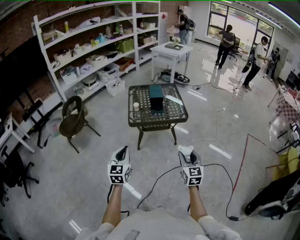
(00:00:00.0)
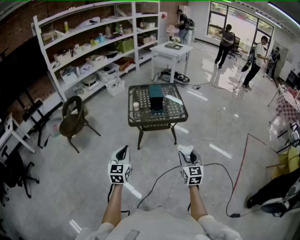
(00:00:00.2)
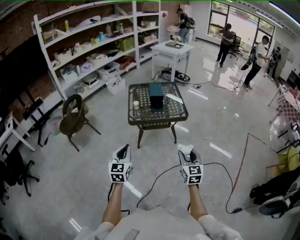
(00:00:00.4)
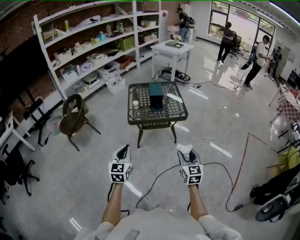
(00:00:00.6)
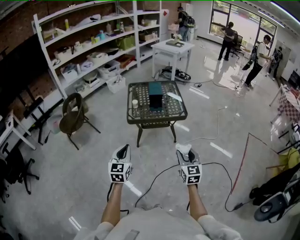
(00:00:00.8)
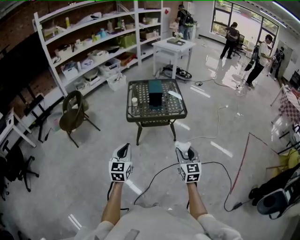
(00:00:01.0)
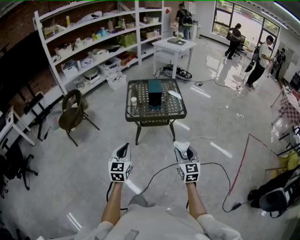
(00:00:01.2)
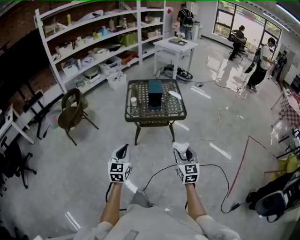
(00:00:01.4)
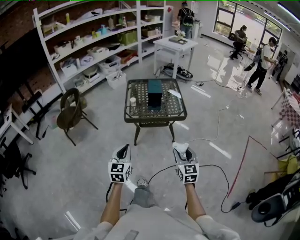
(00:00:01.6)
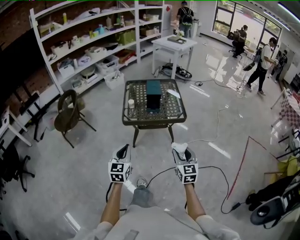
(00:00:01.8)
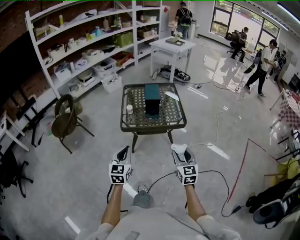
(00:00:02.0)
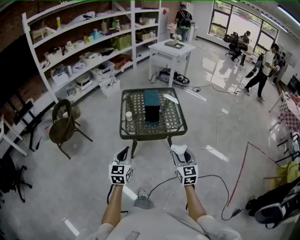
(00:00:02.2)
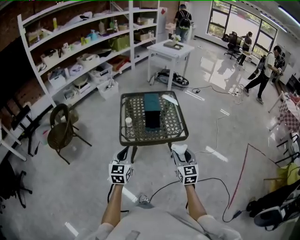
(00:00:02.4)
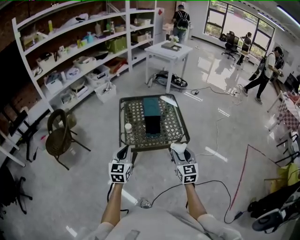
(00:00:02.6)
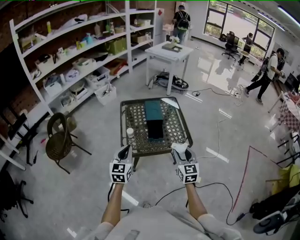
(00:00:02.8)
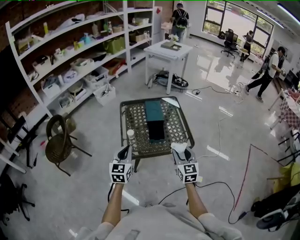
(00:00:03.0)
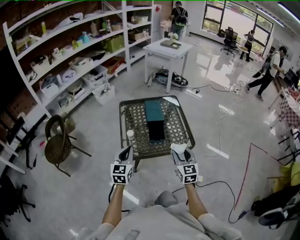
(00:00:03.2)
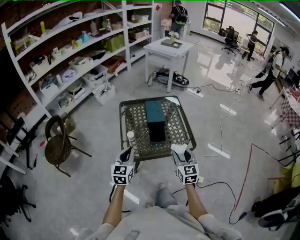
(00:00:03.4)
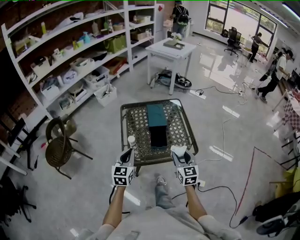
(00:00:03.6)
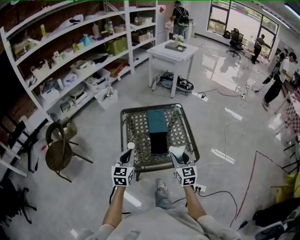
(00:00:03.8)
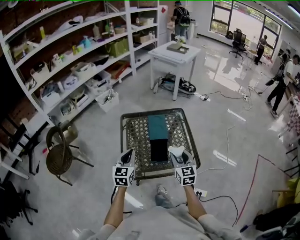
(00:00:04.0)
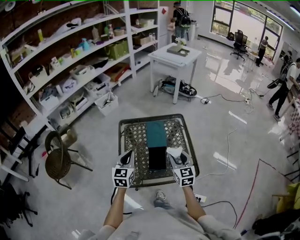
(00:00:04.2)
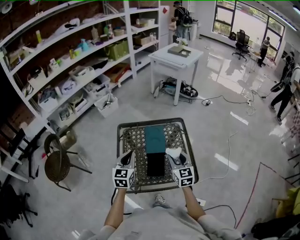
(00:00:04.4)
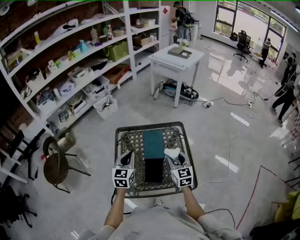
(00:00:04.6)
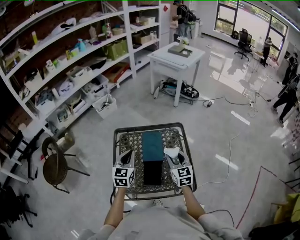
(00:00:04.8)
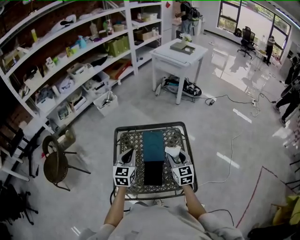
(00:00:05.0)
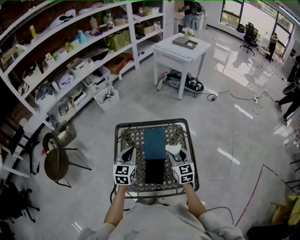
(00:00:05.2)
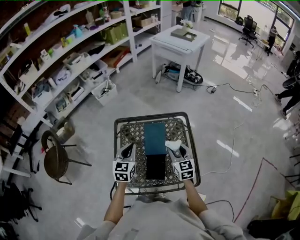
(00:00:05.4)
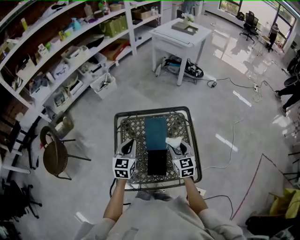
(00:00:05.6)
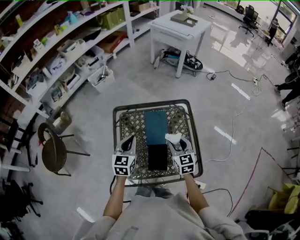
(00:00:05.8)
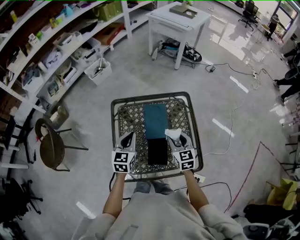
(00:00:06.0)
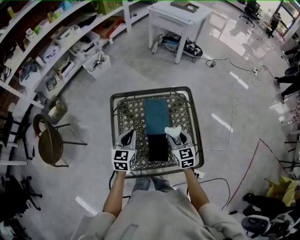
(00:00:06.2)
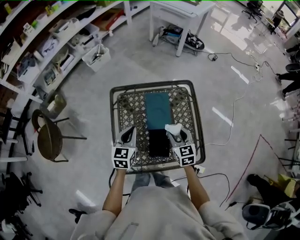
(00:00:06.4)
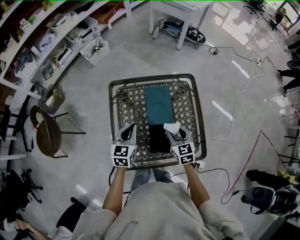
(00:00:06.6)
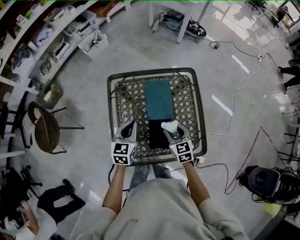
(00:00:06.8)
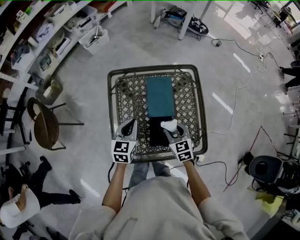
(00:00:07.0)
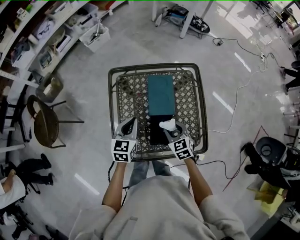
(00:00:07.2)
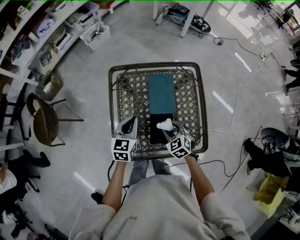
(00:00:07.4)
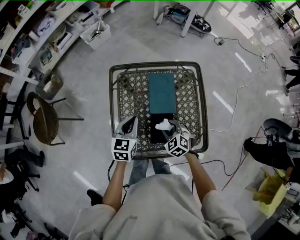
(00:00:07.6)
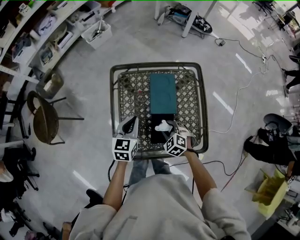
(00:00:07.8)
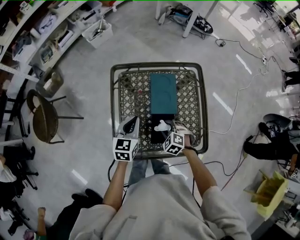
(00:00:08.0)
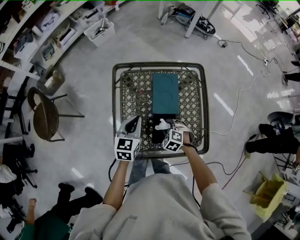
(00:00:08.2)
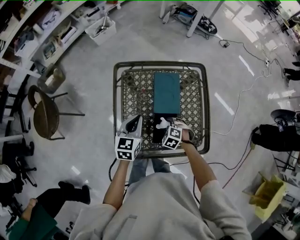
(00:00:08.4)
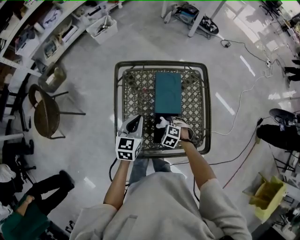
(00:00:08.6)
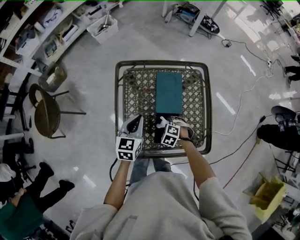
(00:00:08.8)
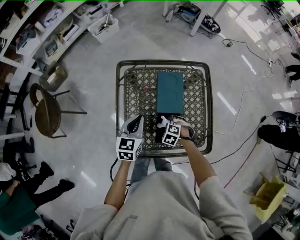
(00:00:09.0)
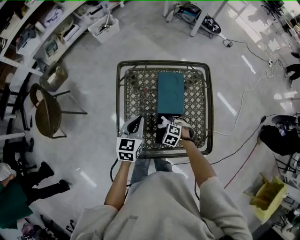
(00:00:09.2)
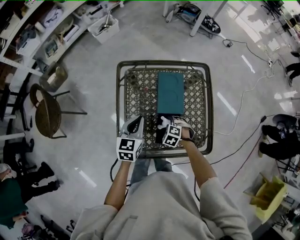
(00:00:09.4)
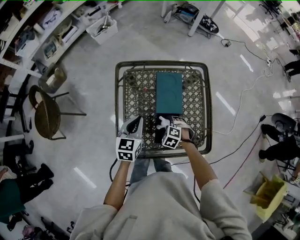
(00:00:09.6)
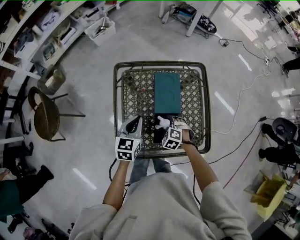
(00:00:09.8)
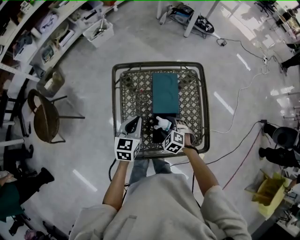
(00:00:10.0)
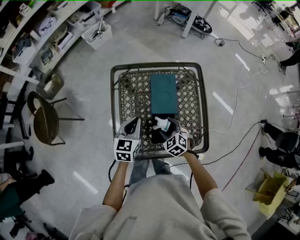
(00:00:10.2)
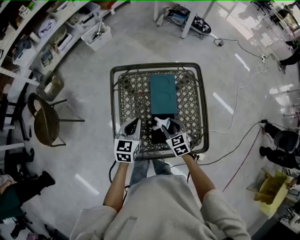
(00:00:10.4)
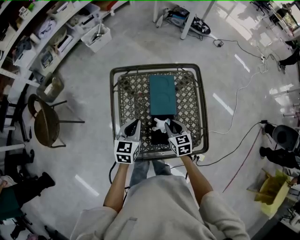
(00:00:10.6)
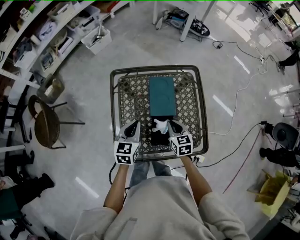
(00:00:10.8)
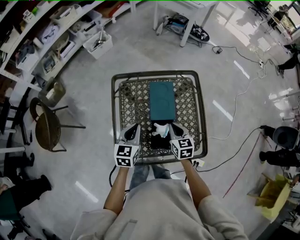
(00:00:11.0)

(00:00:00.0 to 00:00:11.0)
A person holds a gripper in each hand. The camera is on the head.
00:00:00.0 - 00:00:01.6: The right gripper is displaced forward by about 5 cm; the left gripper moves to the right, approximately 5 cm.
00:00:01.6 - 00:00:03.2: The two grippers go approximately 35 cm forward.
00:00:03.2 - 00:00:04.8: The grippers both shift forward by some 35 cm.
00:00:04.8 - 00:00:06.2: Both grippers move downward, roughly 10 cm.
00:00:06.2 - 00:00:07.8: The left gripper goes approximately 5 cm downward. The right gripper heads downward, to the left and backward, covering some 20 cm, and tips its fingers downward by roughly 30 degrees.
00:00:07.8 - 00:00:09.4: The right gripper goes roughly 10 cm downward.
00:00:09.4 - 00:00:11.0: The right gripper travels upward by some 15 cm, tips its fingers upward by about 40 degrees, and closes.

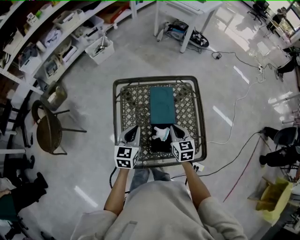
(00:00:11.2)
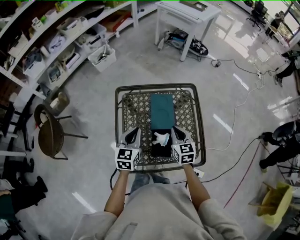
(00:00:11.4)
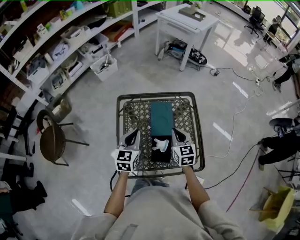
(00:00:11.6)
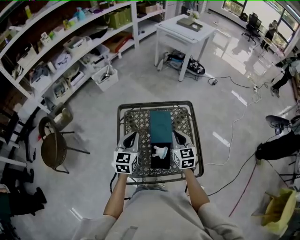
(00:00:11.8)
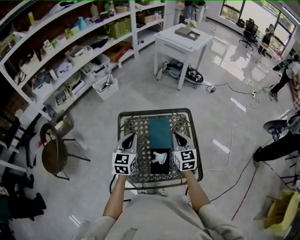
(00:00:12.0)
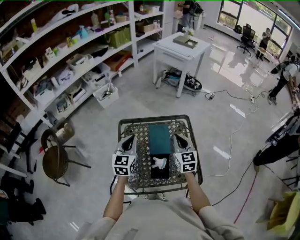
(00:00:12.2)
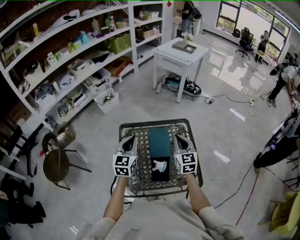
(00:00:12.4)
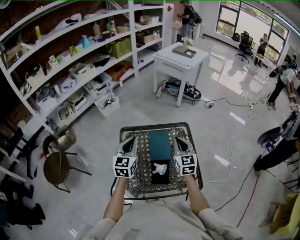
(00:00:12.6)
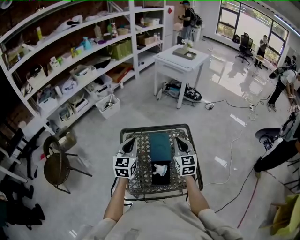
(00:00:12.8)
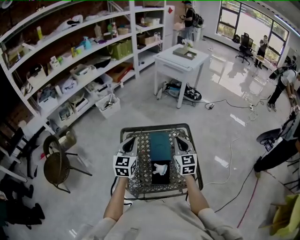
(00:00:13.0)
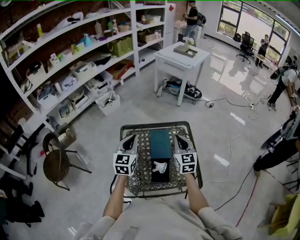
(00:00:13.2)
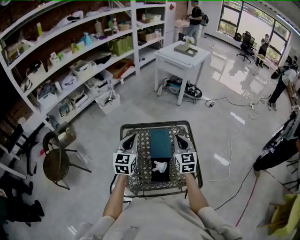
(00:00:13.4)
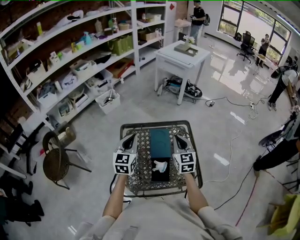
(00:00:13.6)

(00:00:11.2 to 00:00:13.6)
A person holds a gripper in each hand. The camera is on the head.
00:00:11.2 - 00:00:12.4: Both grippers travel together upward, approximately 20 cm. The right gripper changes its angle by some 20 degrees.
00:00:12.4 - 00:00:13.6: The grippers make only small movements.

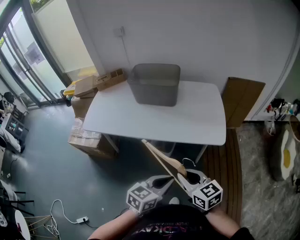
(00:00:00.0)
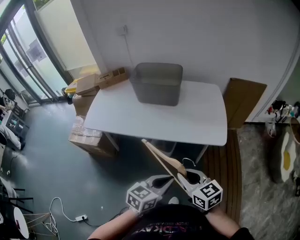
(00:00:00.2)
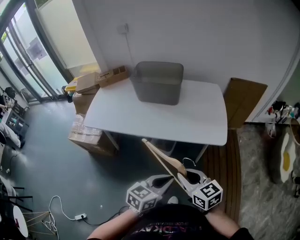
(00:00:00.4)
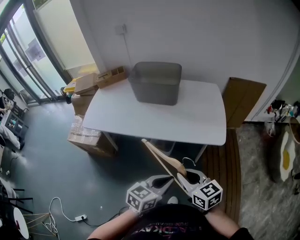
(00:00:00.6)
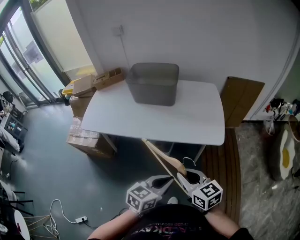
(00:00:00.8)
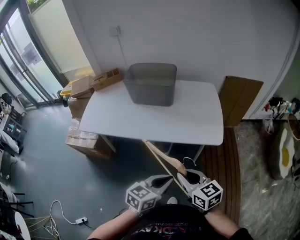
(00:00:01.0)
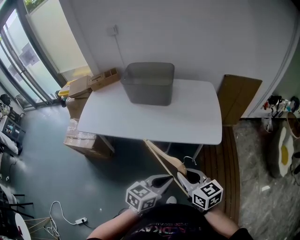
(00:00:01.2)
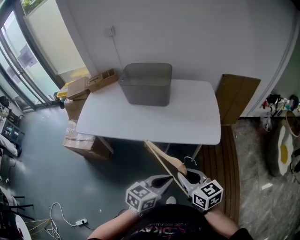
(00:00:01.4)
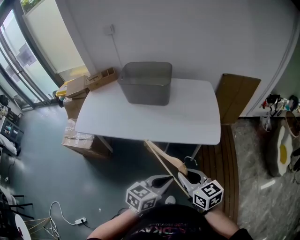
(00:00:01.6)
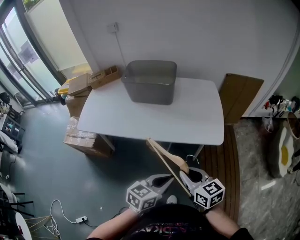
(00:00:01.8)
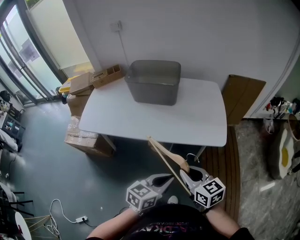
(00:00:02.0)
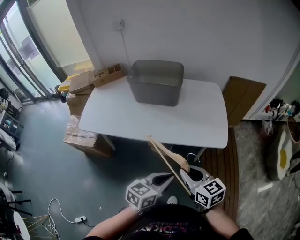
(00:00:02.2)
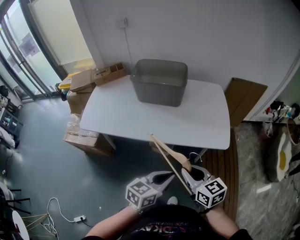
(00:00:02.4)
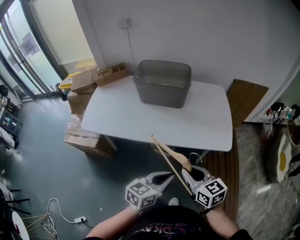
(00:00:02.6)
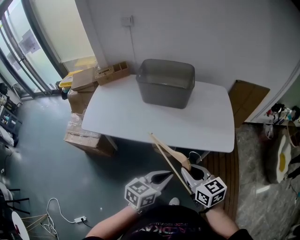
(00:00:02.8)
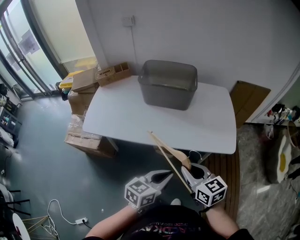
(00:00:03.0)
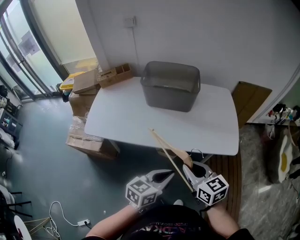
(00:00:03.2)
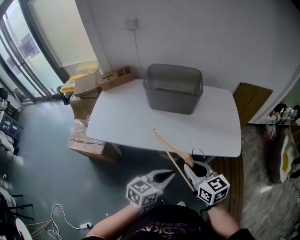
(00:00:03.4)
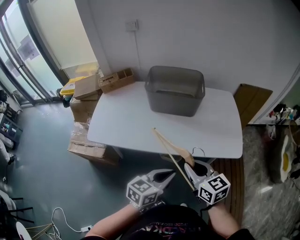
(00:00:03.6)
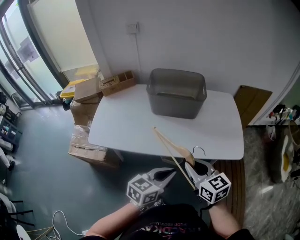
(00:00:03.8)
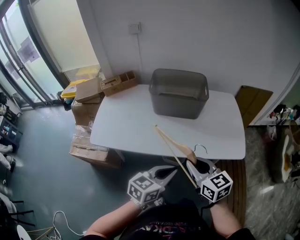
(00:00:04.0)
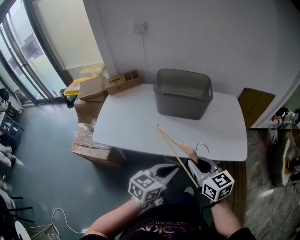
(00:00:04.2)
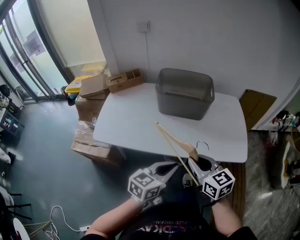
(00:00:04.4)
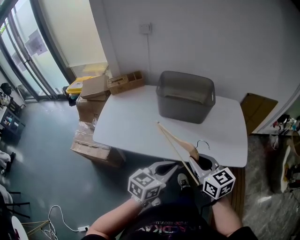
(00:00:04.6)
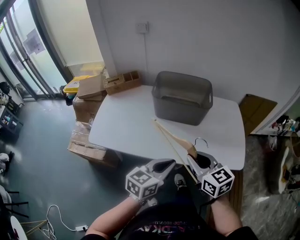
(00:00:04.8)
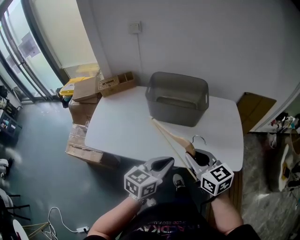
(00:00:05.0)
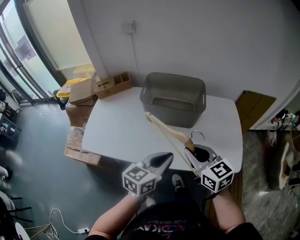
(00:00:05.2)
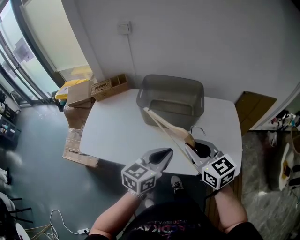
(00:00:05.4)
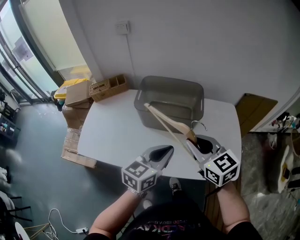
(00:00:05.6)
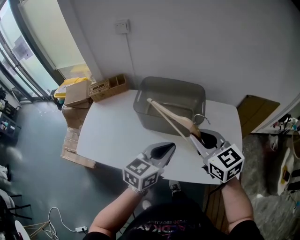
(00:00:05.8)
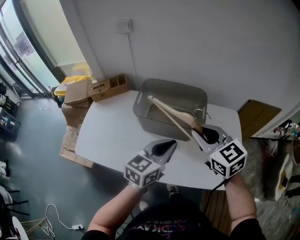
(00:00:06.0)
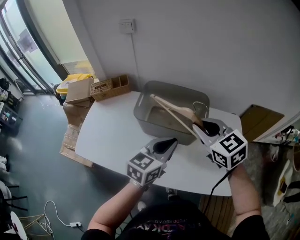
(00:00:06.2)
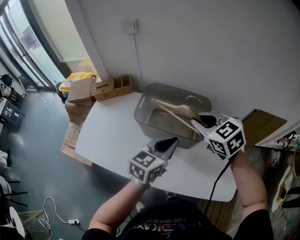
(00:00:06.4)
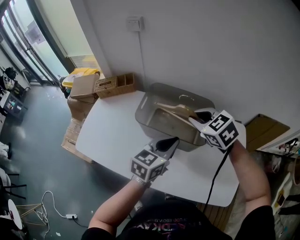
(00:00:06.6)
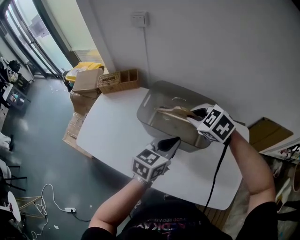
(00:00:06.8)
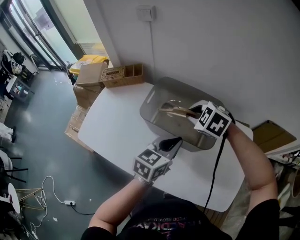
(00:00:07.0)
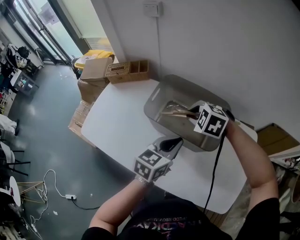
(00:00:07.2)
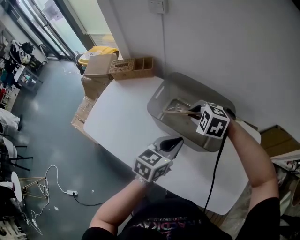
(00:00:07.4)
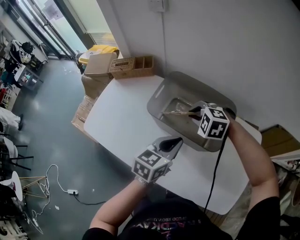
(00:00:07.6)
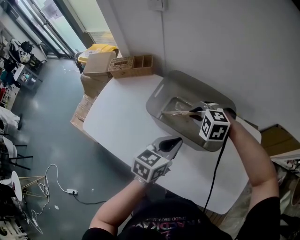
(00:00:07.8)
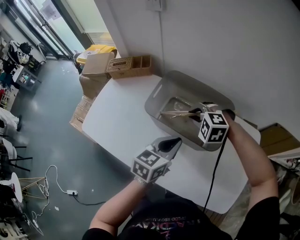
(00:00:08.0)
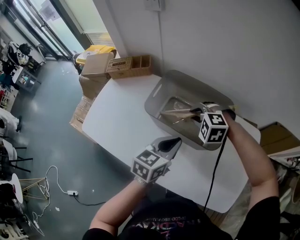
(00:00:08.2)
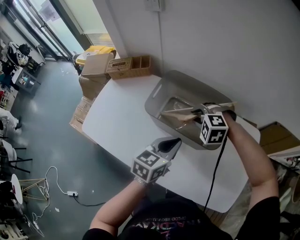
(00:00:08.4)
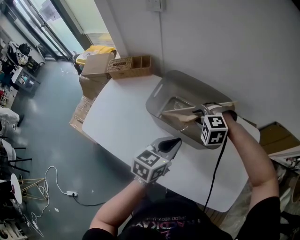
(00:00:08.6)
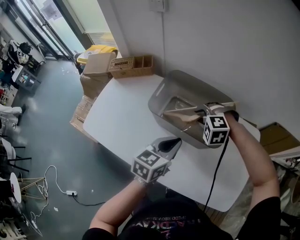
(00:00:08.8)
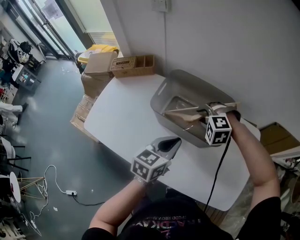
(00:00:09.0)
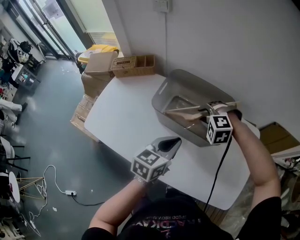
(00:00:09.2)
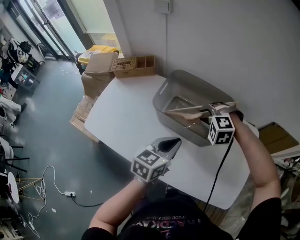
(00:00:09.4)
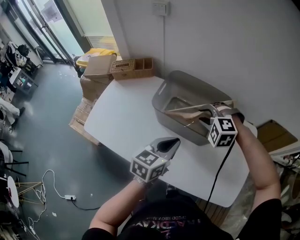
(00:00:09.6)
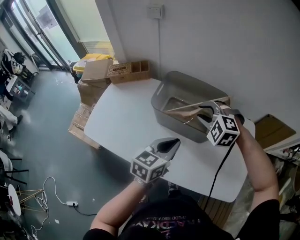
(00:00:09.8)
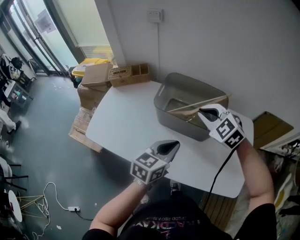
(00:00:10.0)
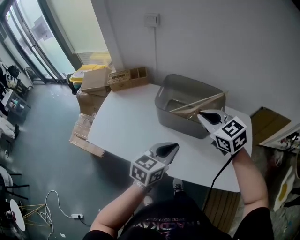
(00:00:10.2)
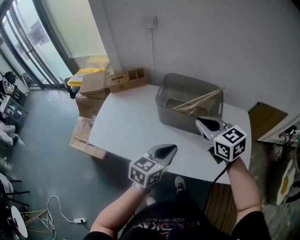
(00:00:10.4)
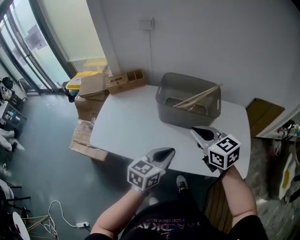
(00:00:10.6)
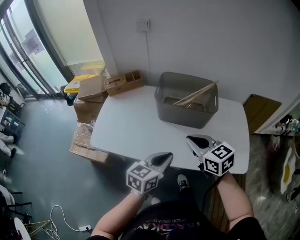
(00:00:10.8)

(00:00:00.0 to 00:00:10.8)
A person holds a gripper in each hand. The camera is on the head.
00:00:00.0 - 00:00:01.6: The grippers move only a little.
00:00:01.6 - 00:00:03.0: The two grippers go roughly 15 cm to the left and forward.
00:00:03.0 - 00:00:04.6: Both grippers travel together to the left and forward, roughly 15 cm.
00:00:04.6 - 00:00:06.2: Both grippers travel together forward, approximately 30 cm. The right gripper rotates approximately 20 degrees.
00:00:06.2 - 00:00:07.8: The left gripper moves downward and forward, some 10 cm. Meanwhile the right gripper travels downward and forward by roughly 20 cm, and rotates around the line of its fingers by about 50 degrees, counterclockwise from behind.
00:00:07.8 - 00:00:09.2: There are only small adjustments of the grippers.
00:00:09.2 - 00:00:10.8: The right gripper heads backward and upward, covering about 30 cm, rotates around the line of its fingers by roughly 80 degrees, clockwise from behind, and closes. The left gripper goes approximately 25 cm backward and to the left.
